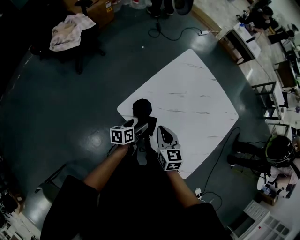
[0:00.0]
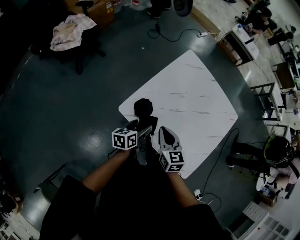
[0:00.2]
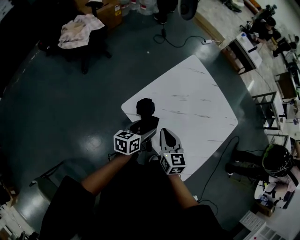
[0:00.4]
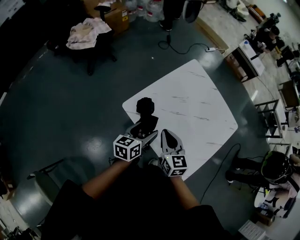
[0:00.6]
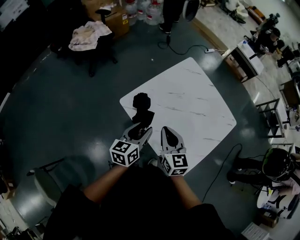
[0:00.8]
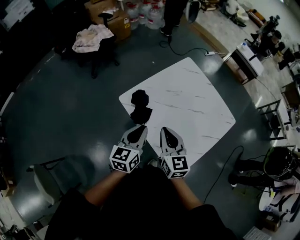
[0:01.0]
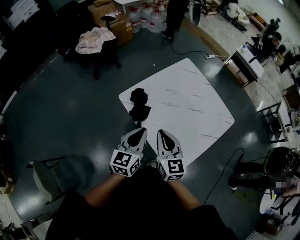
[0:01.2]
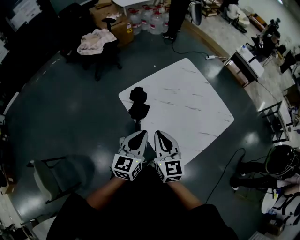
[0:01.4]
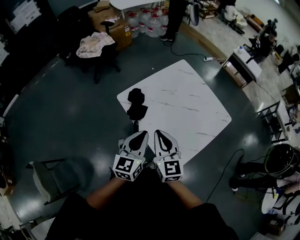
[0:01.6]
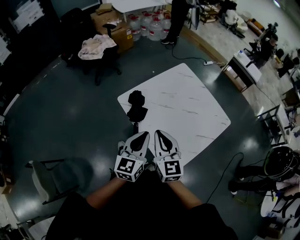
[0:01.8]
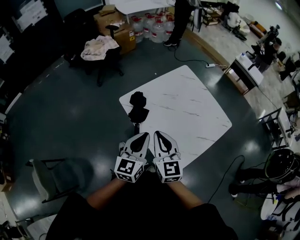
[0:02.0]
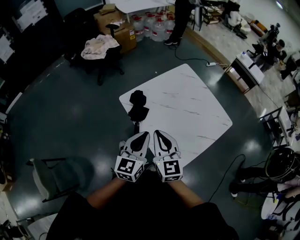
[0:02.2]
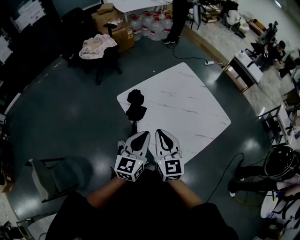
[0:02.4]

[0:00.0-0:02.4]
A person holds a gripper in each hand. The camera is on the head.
0:00.0 to 0:01.2: The right gripper heads backward, upward and to the right, covering some 25 cm, and rotates about 20 degrees; the left gripper heads upward, backward and to the right, covering some 30 cm, turns by some 50 degrees, and closes its fingers.
0:01.2 to 0:02.4: The right gripper shifts by roughly 5 cm. The left gripper heads to the right, covering about 5 cm.

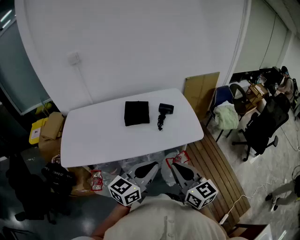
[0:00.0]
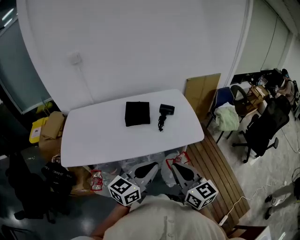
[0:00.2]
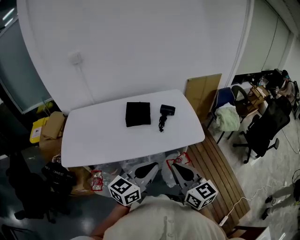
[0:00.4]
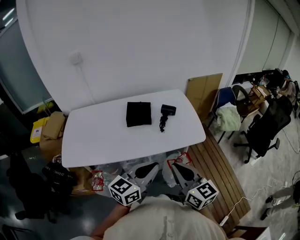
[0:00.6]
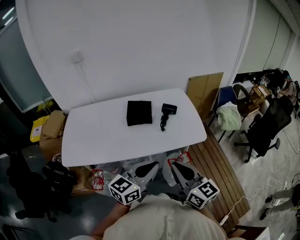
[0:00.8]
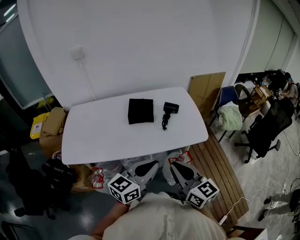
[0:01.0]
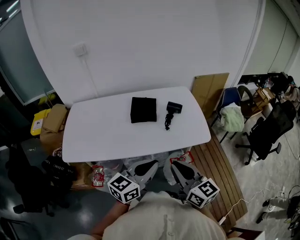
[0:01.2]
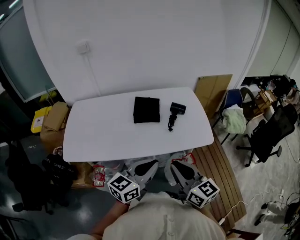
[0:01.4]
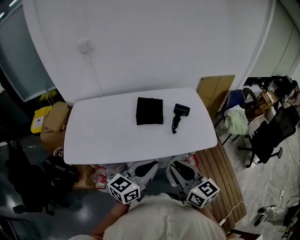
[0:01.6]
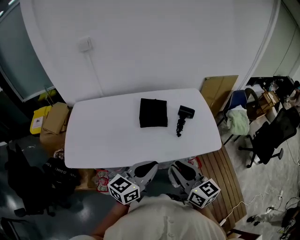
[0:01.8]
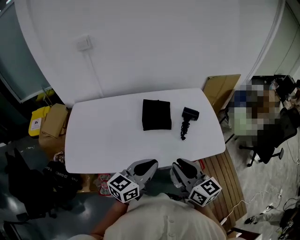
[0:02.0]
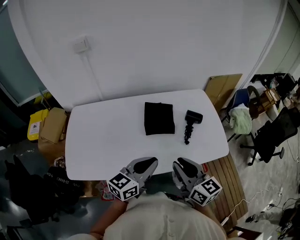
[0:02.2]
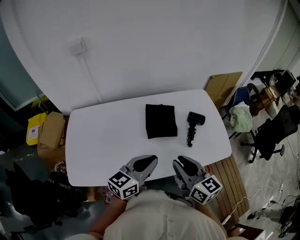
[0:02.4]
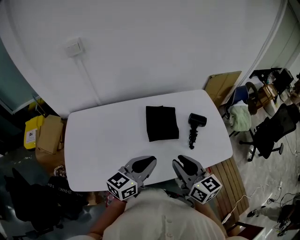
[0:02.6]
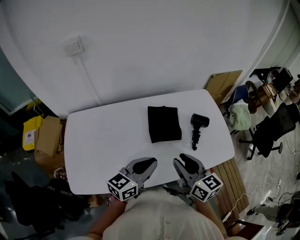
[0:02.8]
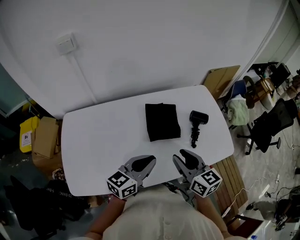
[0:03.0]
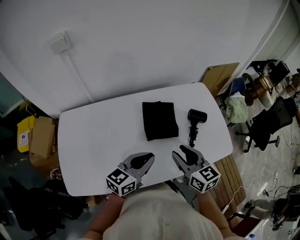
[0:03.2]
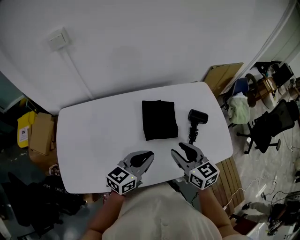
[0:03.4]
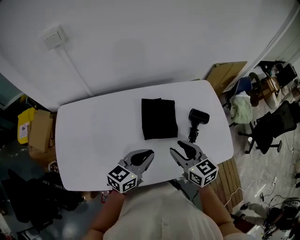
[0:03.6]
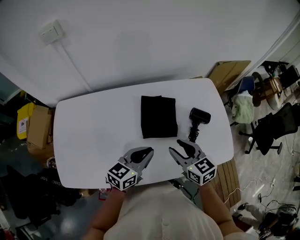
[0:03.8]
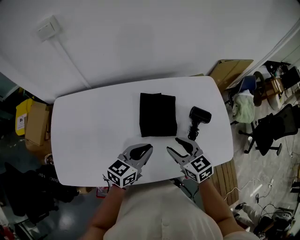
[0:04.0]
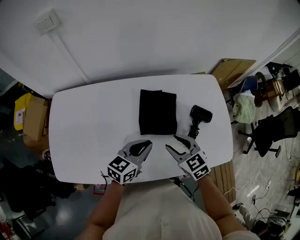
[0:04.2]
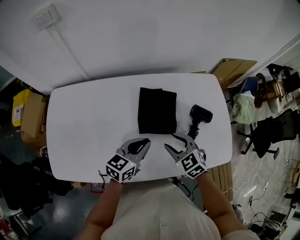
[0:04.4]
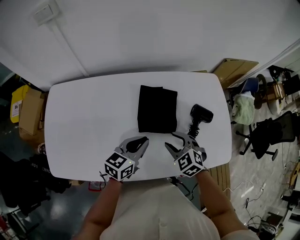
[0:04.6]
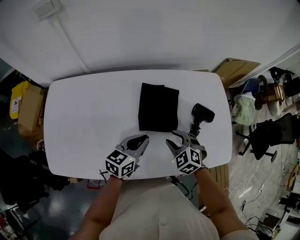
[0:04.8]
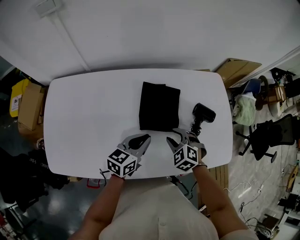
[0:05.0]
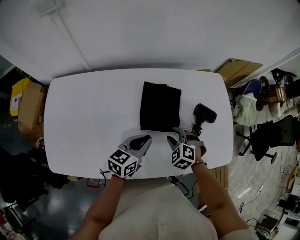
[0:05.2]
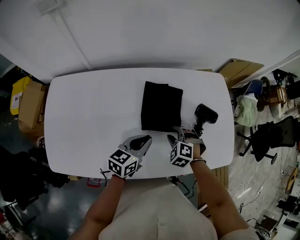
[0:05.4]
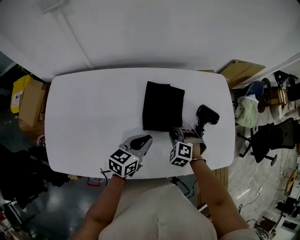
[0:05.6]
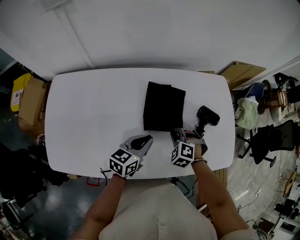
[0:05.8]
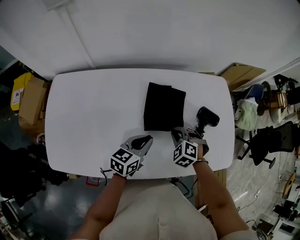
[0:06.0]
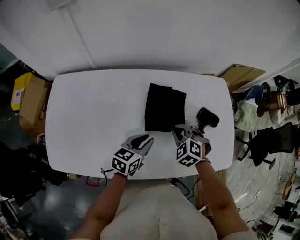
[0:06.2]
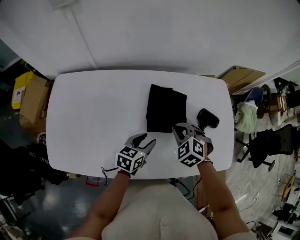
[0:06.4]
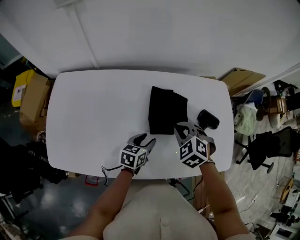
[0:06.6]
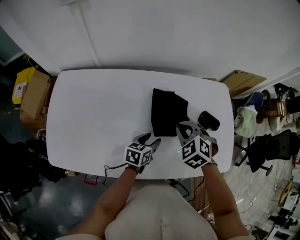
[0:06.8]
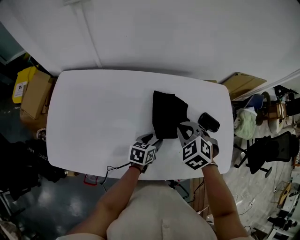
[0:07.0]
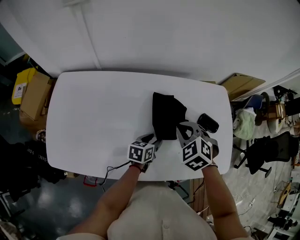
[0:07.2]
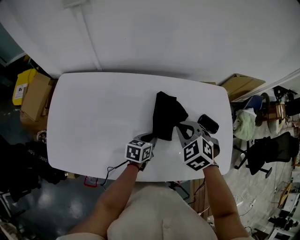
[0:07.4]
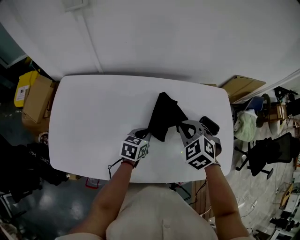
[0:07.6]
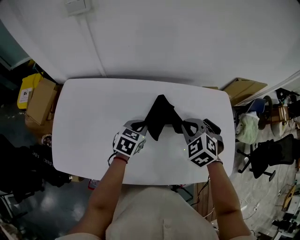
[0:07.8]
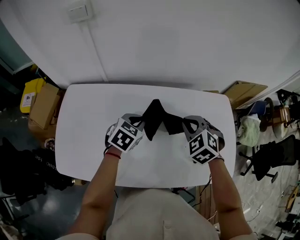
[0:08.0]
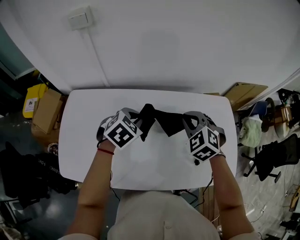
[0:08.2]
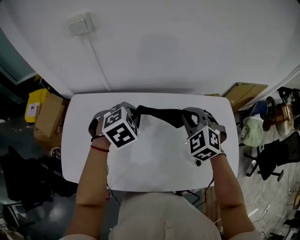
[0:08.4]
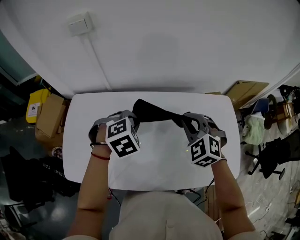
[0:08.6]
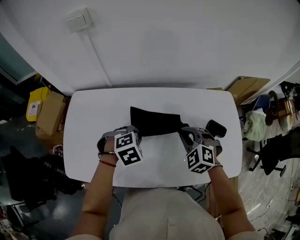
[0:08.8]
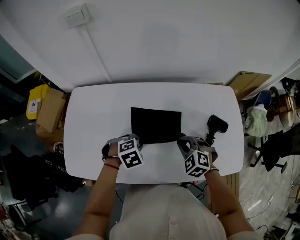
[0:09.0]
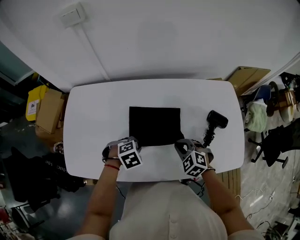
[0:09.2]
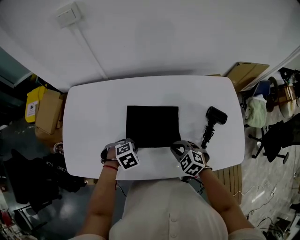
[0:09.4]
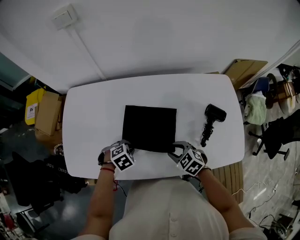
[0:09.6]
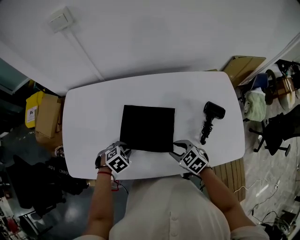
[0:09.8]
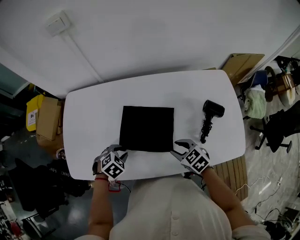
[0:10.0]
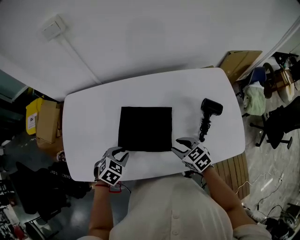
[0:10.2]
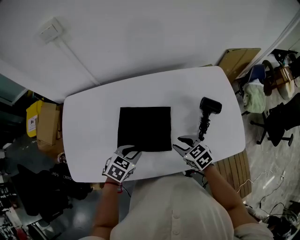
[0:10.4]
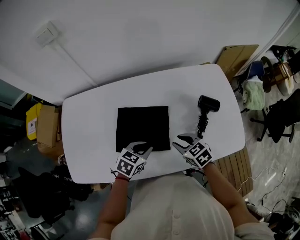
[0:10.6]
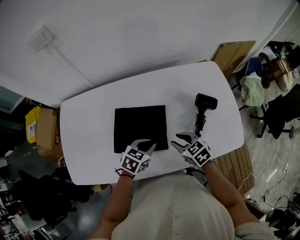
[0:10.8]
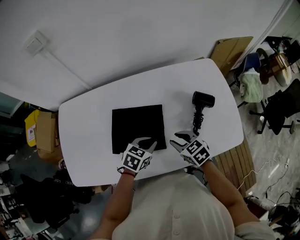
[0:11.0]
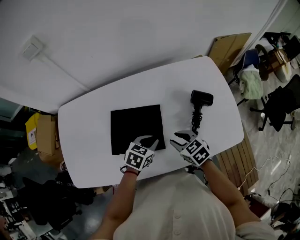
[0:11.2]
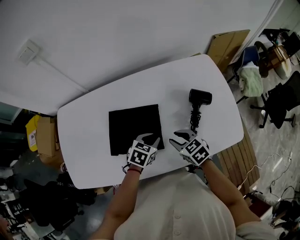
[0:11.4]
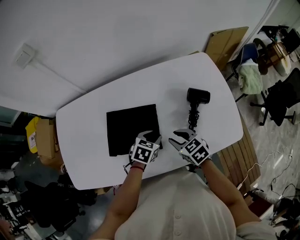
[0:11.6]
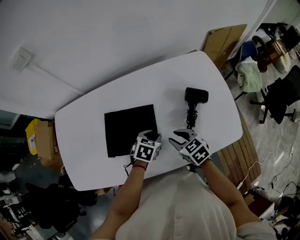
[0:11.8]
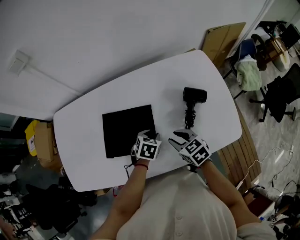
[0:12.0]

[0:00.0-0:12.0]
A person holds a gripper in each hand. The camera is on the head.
0:00.0 to 0:01.6: The two grippers go approximately 10 cm to the left and forward.
0:01.6 to 0:03.0: Both grippers move forward and to the left, roughly 25 cm.
0:03.0 to 0:04.4: Both grippers travel together downward and forward, about 15 cm. The right gripper swivels approximately 50 degrees.
0:04.4 to 0:06.0: The right gripper heads downward, covering about 5 cm, rotates roughly 30 degrees, and closes its fingers.
0:06.0 to 0:07.6: The right gripper shifts about 15 cm upward. Meanwhile the left gripper shifts roughly 5 cm forward, and opens, then closes again.
0:07.6 to 0:09.0: The left gripper is displaced backward and to the left by roughly 10 cm, travels upward and back again, some 20 cm each way, and tilts its fingers about 40 degrees downward. Meanwhile the right gripper is displaced downward and backward by approximately 10 cm.
0:09.0 to 0:10.4: The right gripper moves some 5 cm, rotates around the line of its fingers by about 40 degrees, clockwise from behind, and opens up; the left gripper turns by approximately 30 degrees, and opens.
0:10.4 to 0:12.0: The left gripper heads to the right, forward and downward, covering about 20 cm, while the right gripper moves to the right, about 5 cm.

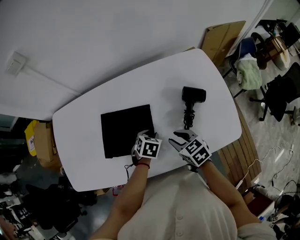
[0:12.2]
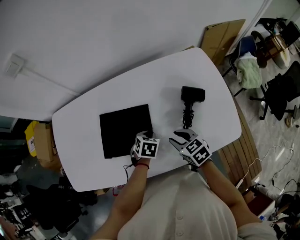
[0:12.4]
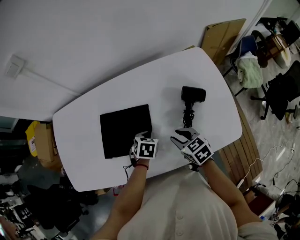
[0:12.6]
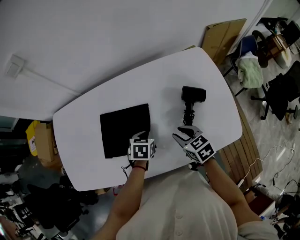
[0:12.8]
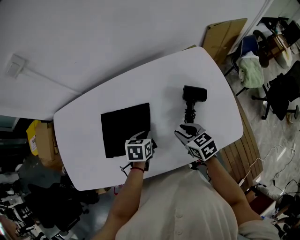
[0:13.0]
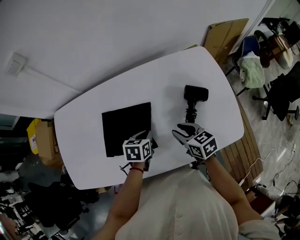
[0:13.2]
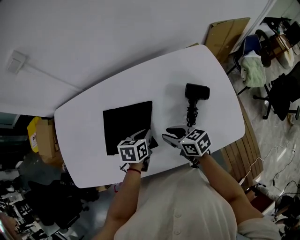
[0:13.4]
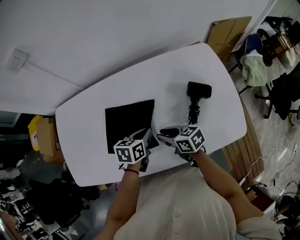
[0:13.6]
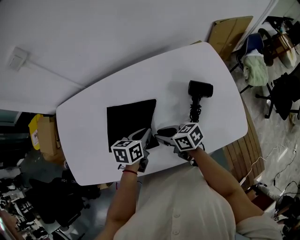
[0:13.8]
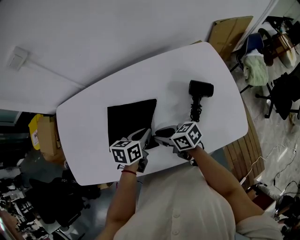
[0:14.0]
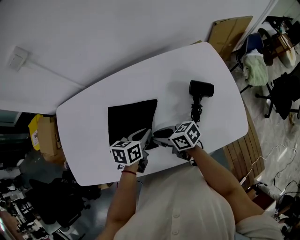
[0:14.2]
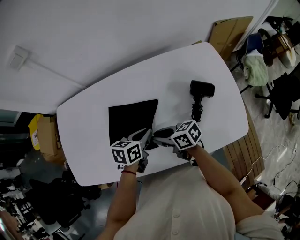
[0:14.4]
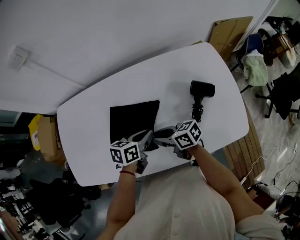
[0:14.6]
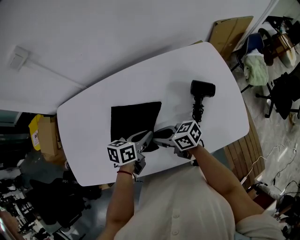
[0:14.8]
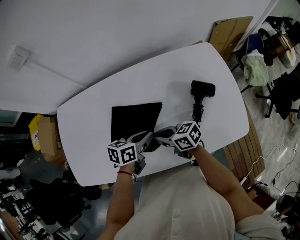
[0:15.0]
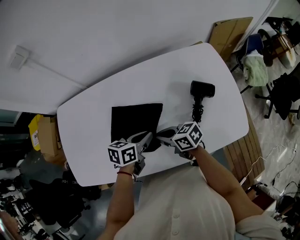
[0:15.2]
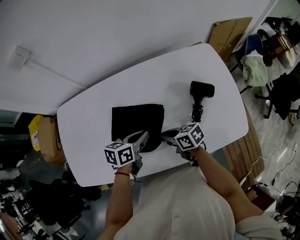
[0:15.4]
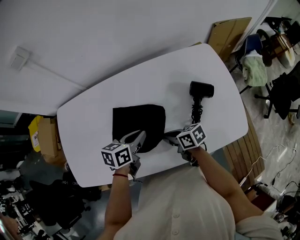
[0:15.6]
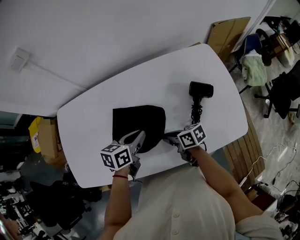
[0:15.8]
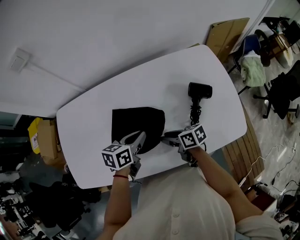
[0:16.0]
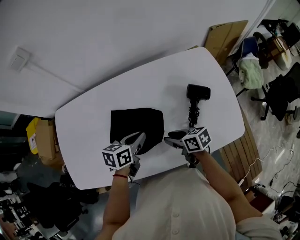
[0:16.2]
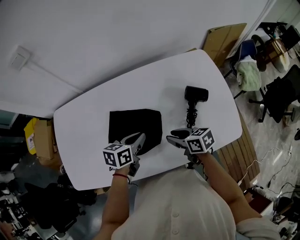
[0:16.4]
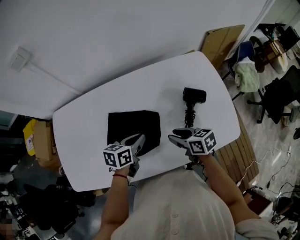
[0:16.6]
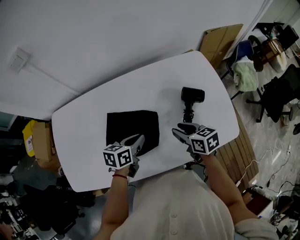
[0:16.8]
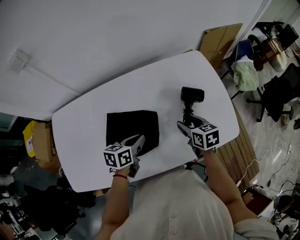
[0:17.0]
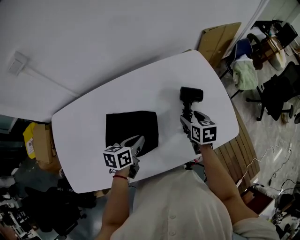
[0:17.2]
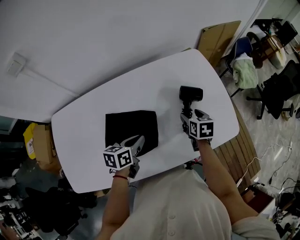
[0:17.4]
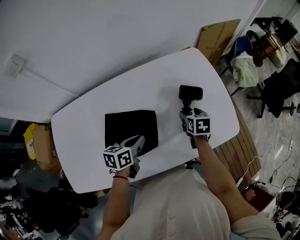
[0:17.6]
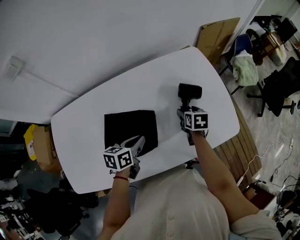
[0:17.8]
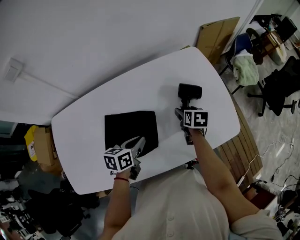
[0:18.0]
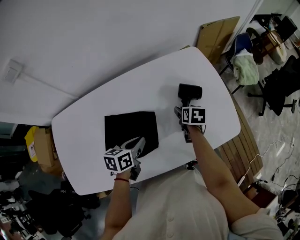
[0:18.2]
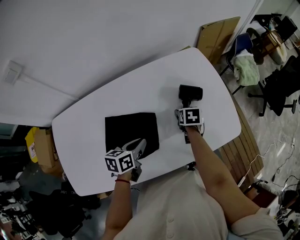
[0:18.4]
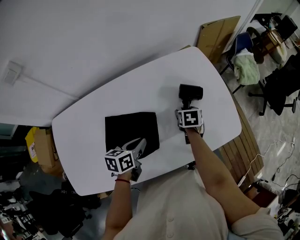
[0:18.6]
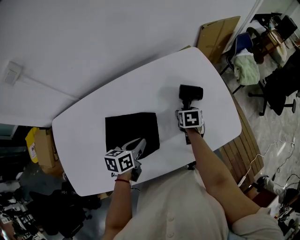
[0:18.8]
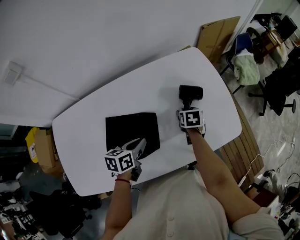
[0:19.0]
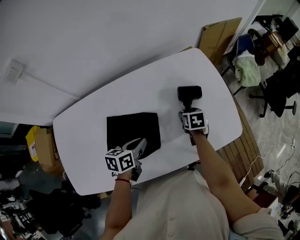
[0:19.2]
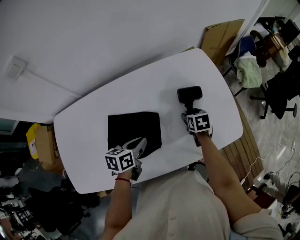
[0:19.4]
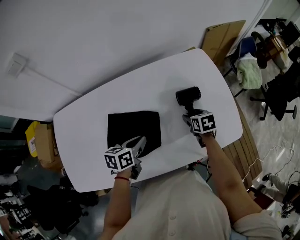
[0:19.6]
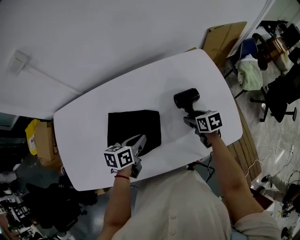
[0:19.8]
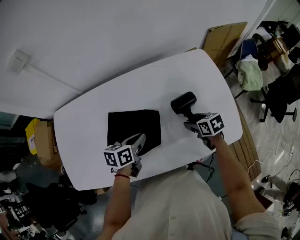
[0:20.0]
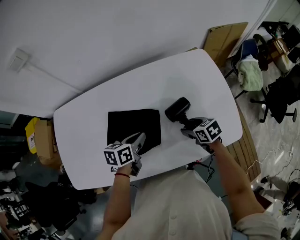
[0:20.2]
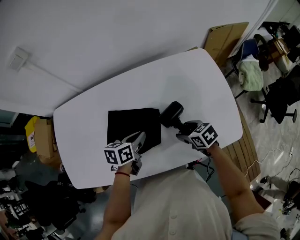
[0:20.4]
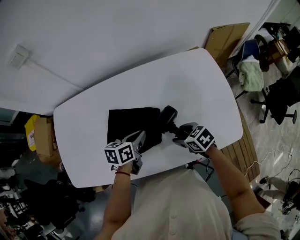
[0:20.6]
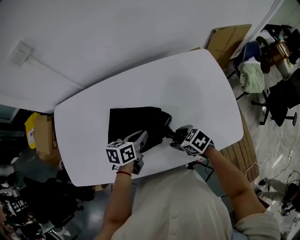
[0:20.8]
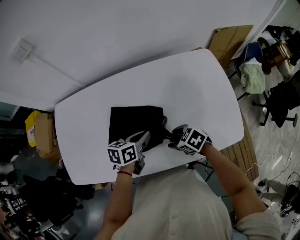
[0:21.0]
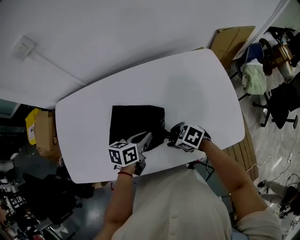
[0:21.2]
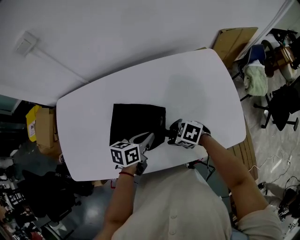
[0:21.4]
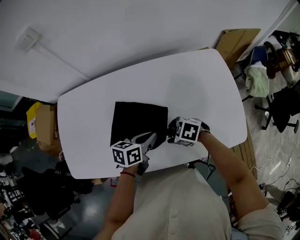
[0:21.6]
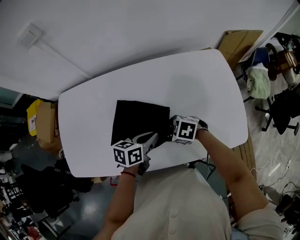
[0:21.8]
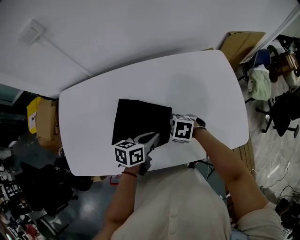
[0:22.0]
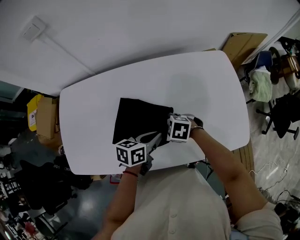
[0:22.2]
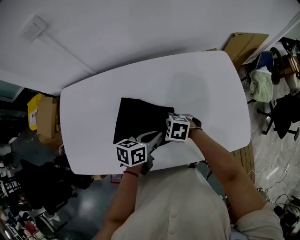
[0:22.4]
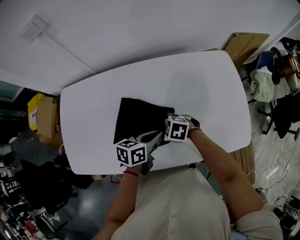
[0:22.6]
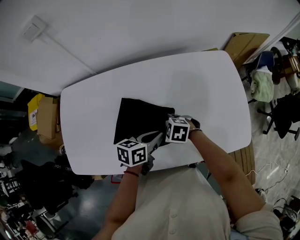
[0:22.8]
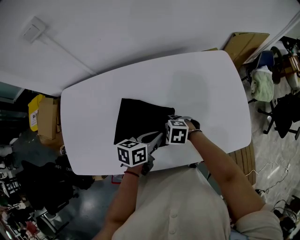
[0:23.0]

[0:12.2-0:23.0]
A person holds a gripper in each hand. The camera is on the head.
0:12.2 to 0:13.8: The left gripper travels upward by about 10 cm, turns by about 40 degrees, and closes; the right gripper heads to the left, covering about 10 cm, and swivels approximately 30 degrees.
0:13.8 to 0:15.2: The grippers stay close to where they were, moving slightly.
0:15.2 to 0:16.8: The right gripper moves some 15 cm, swivels approximately 30 degrees, and opens its fingers.
0:16.8 to 0:18.4: The right gripper shifts about 15 cm forward, downward and to the right, changes its angle by about 40 degrees, and opens up.
0:18.4 to 0:20.0: The right gripper changes place by some 5 cm, and rotates approximately 30 degrees.
0:20.0 to 0:21.4: The right gripper changes place by some 15 cm, and rotates around the line of its fingers by about 40 degrees, counterclockwise from behind.
0:21.4 to 0:23.0: The right gripper changes place by approximately 10 cm, and turns by some 20 degrees.
